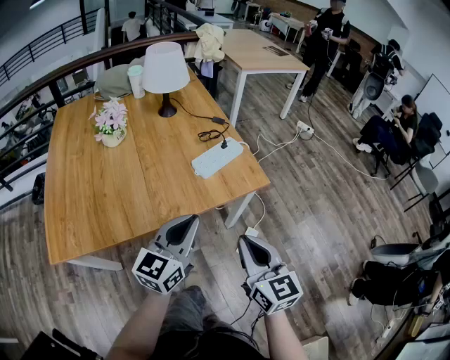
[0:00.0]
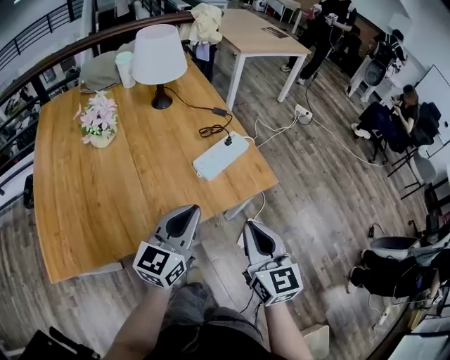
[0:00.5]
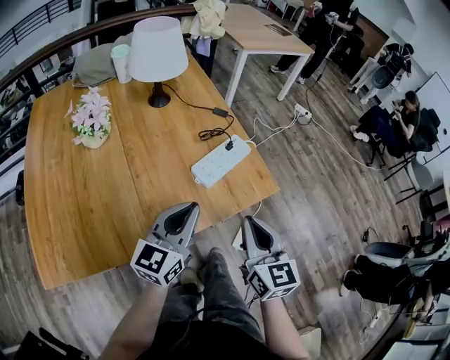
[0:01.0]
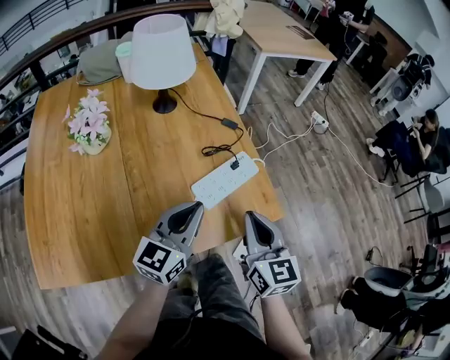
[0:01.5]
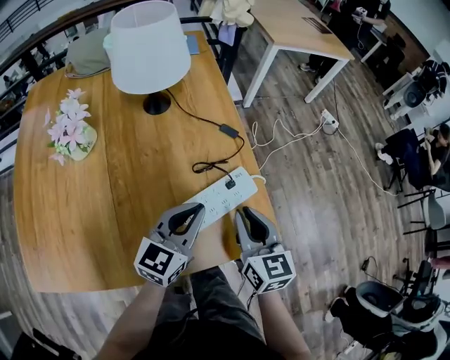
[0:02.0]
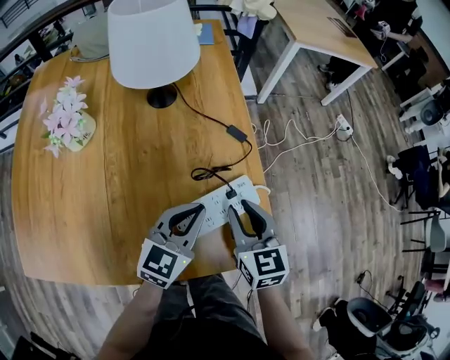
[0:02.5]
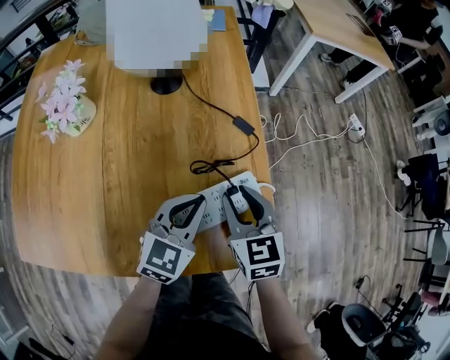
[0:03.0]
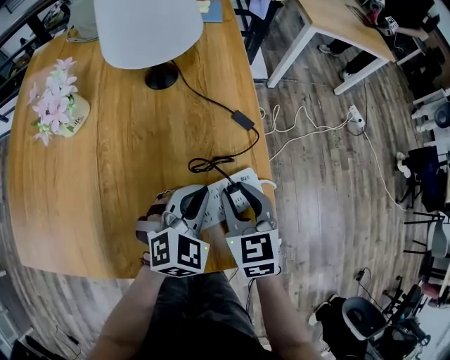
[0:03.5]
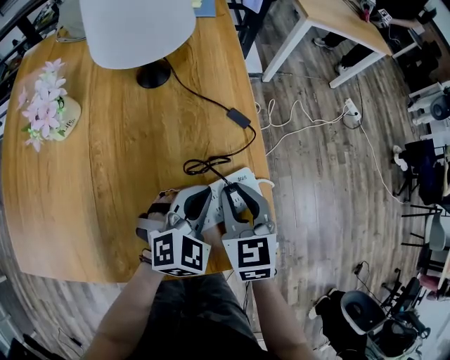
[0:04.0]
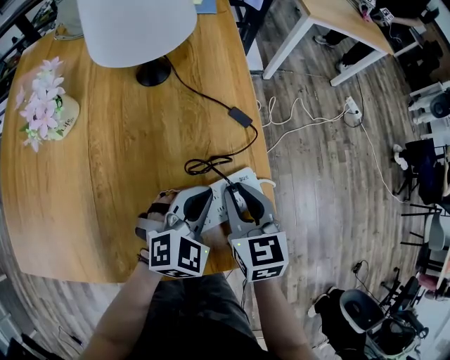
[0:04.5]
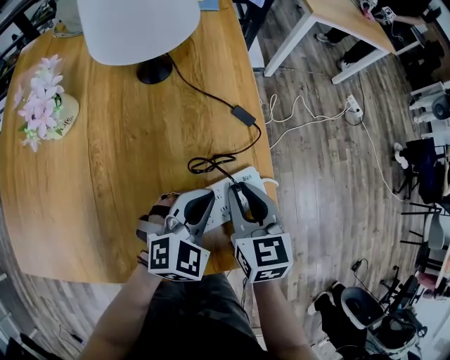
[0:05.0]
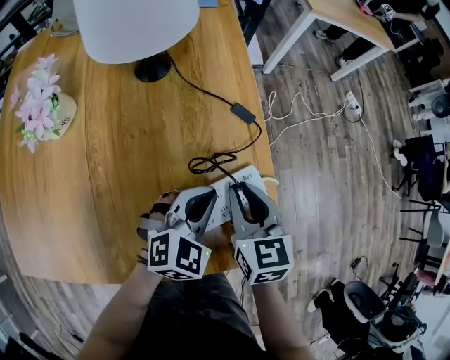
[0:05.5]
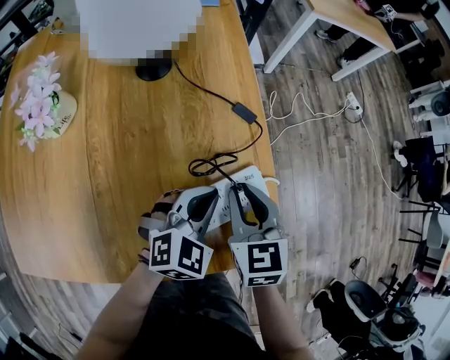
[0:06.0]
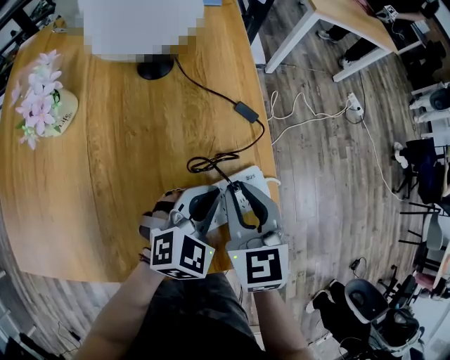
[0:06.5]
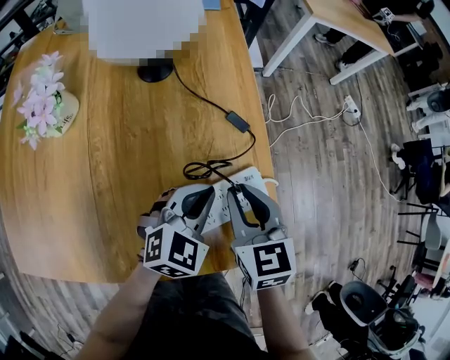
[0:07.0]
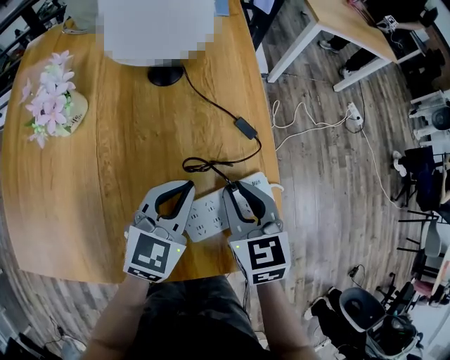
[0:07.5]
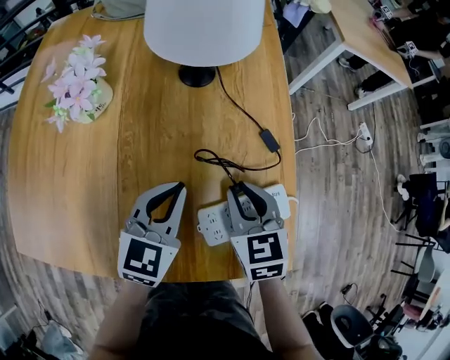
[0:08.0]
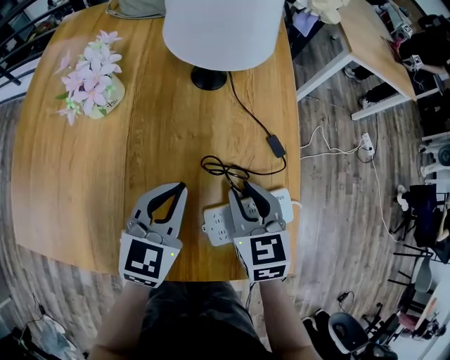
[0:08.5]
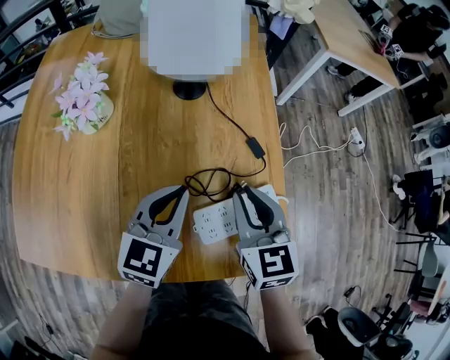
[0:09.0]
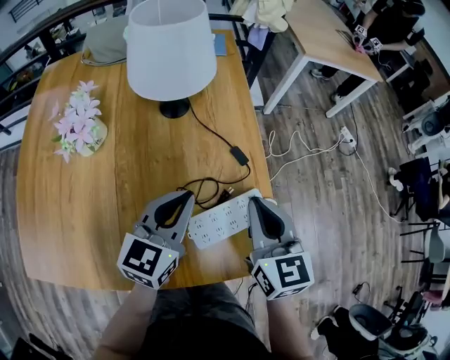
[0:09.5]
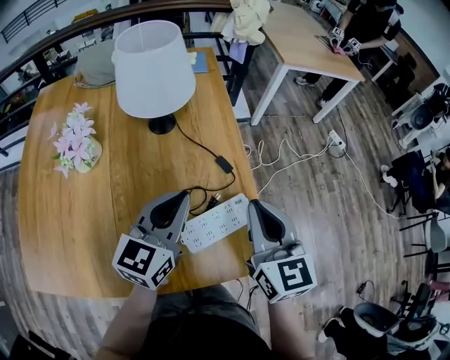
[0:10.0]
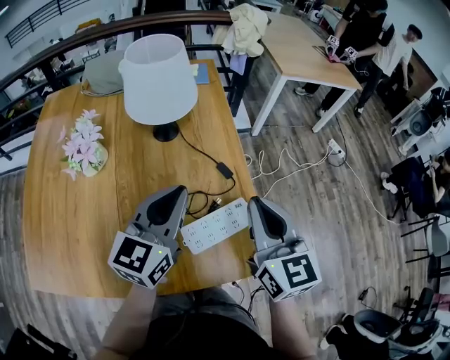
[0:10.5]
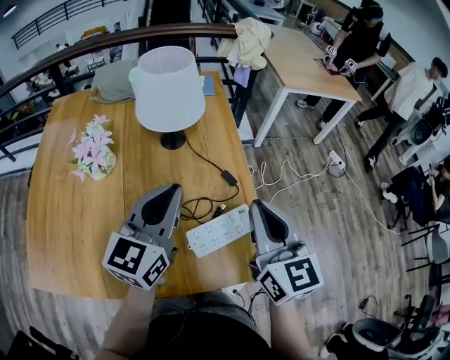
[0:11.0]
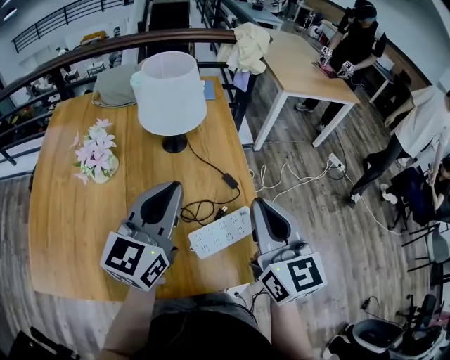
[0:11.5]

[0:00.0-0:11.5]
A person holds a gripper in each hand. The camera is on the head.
0:00.0 to 0:02.0: The grippers both shift forward by some 30 cm.
0:02.0 to 0:04.0: The right gripper goes roughly 10 cm forward and downward, and rotates roughly 20 degrees. The left gripper heads downward and forward, covering some 10 cm, and rotates approximately 40 degrees.
0:04.0 to 0:06.0: The grippers move only a little.
0:06.0 to 0:07.5: The left gripper travels to the left by some 10 cm, and swivels roughly 20 degrees.
0:07.5 to 0:09.5: The grippers both shift upward by some 10 cm. The left gripper goes to the left and returns, about 10 cm each way.
0:09.5 to 0:11.5: Both grippers travel together upward, some 15 cm.

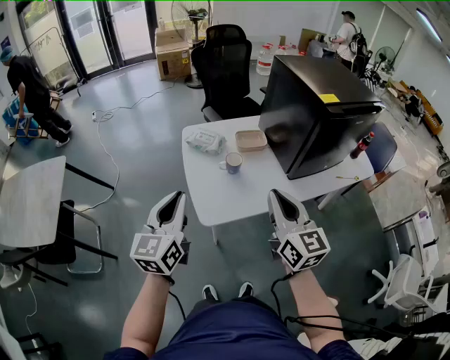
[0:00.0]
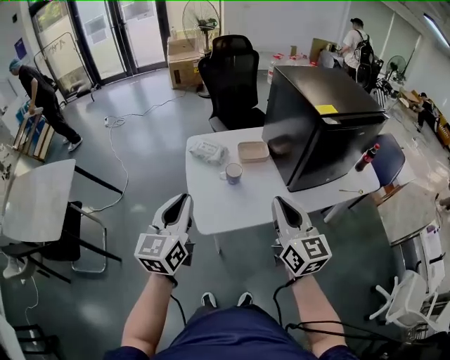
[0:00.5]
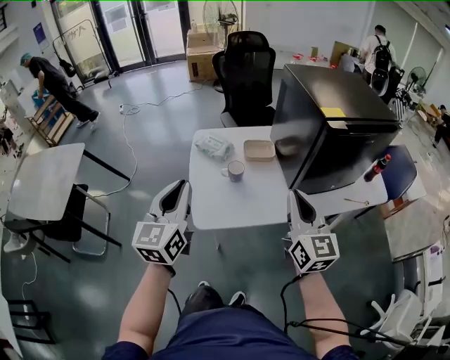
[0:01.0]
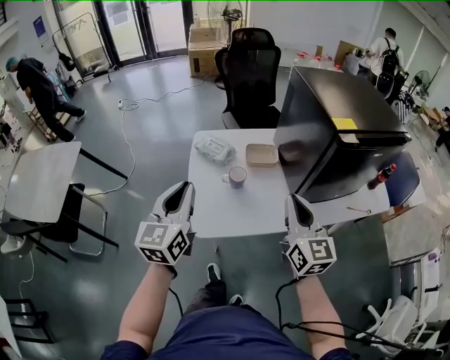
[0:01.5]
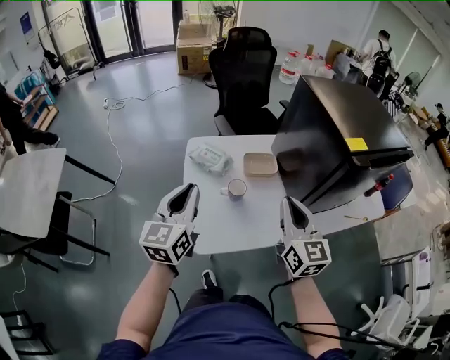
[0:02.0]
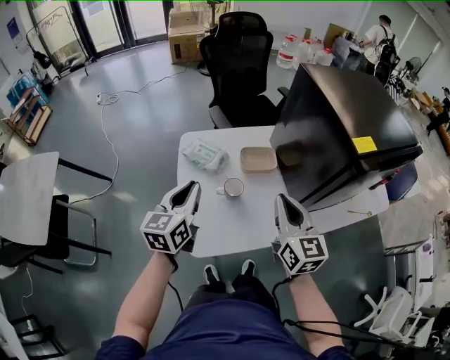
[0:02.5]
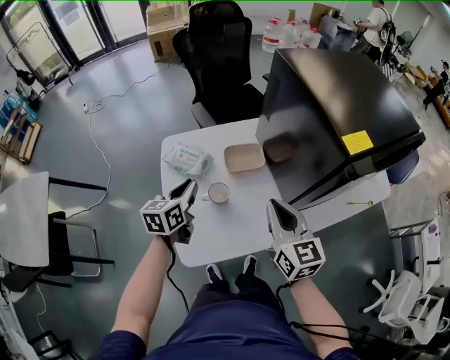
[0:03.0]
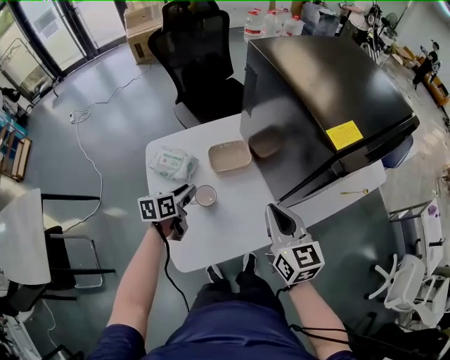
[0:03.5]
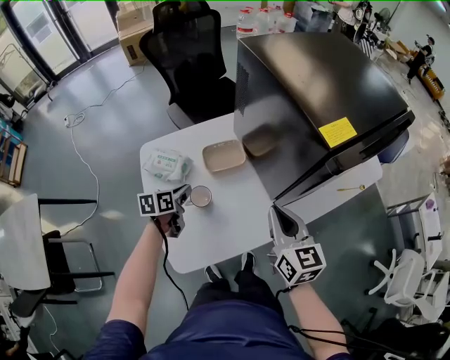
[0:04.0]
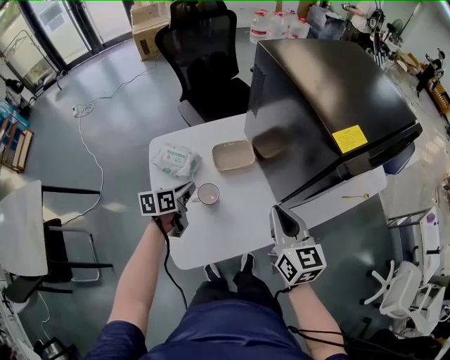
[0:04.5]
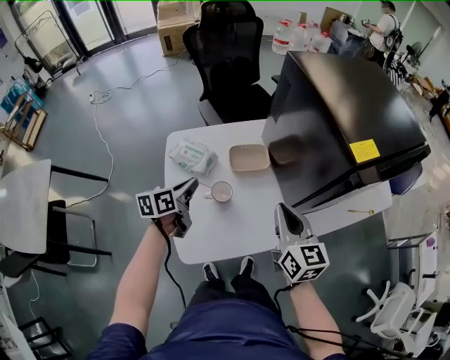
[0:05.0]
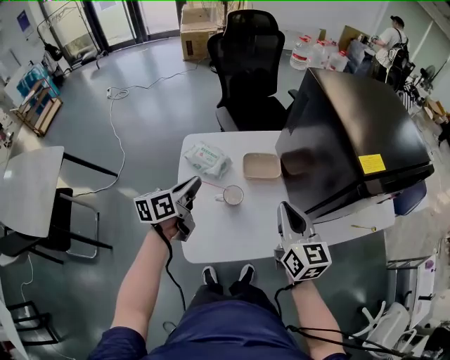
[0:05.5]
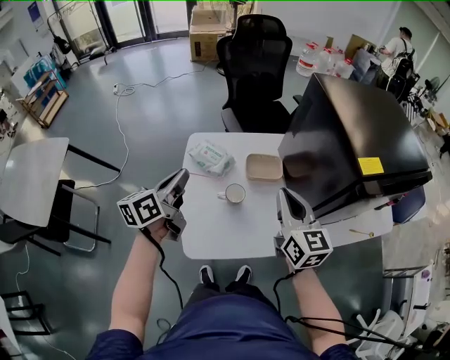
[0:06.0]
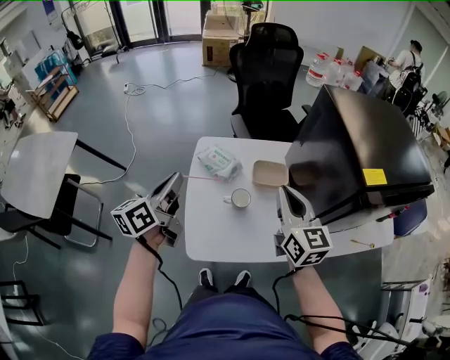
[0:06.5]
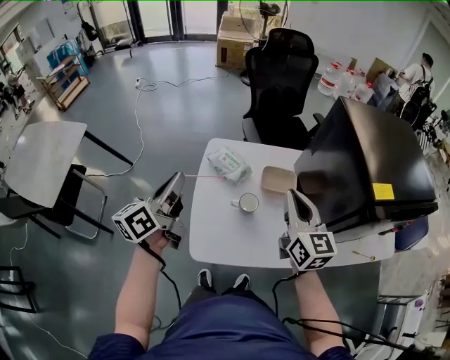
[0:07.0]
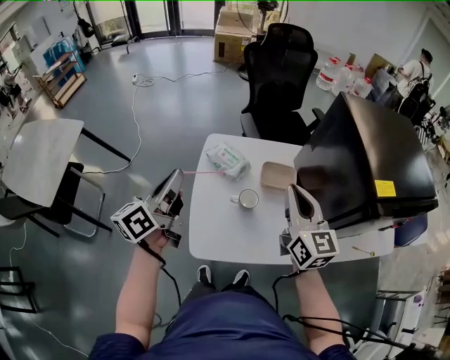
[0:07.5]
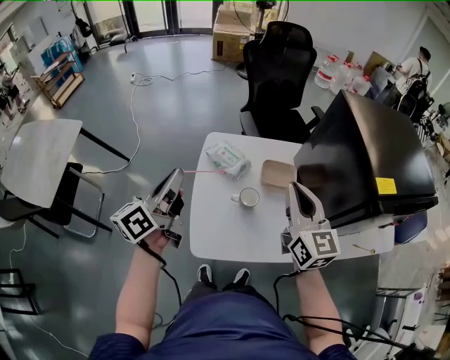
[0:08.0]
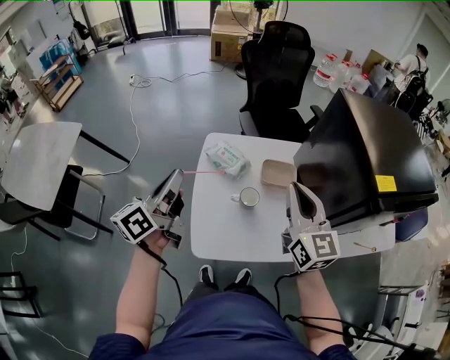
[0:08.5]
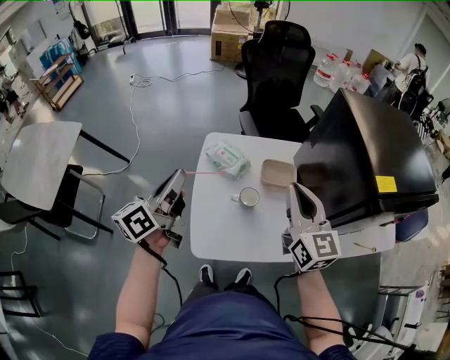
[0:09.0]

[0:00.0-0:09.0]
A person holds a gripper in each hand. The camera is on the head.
0:00.0 to 0:02.0: The right gripper travels forward and to the right by some 15 cm. The left gripper goes about 15 cm forward.
0:02.0 to 0:04.5: The right gripper travels downward, to the right and forward by about 15 cm, while the left gripper shifts roughly 30 cm downward and forward, and swivels about 50 degrees.
0:04.5 to 0:07.0: The left gripper moves upward, about 25 cm, and tilts its fingers about 30 degrees upward; the right gripper shifts by some 15 cm, and swivels approximately 20 degrees.
0:07.0 to 0:09.0: The grippers make only small movements.

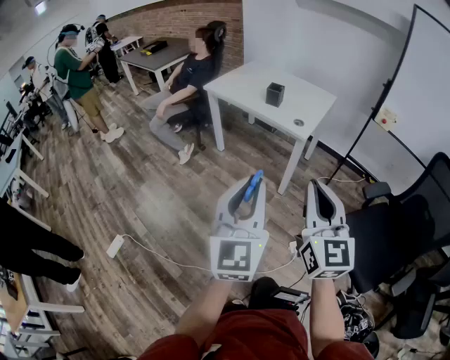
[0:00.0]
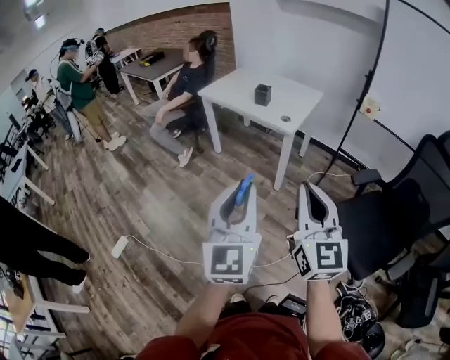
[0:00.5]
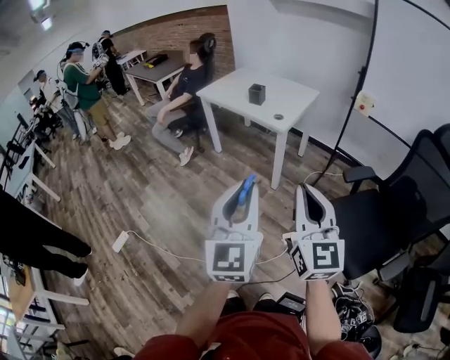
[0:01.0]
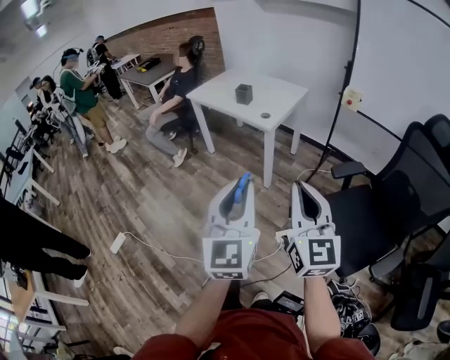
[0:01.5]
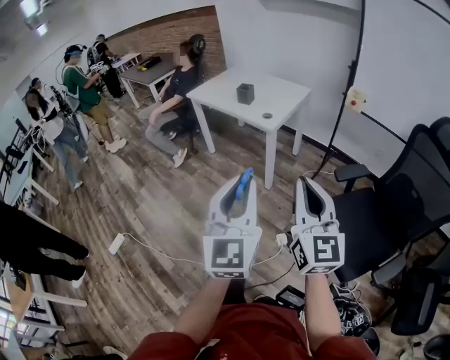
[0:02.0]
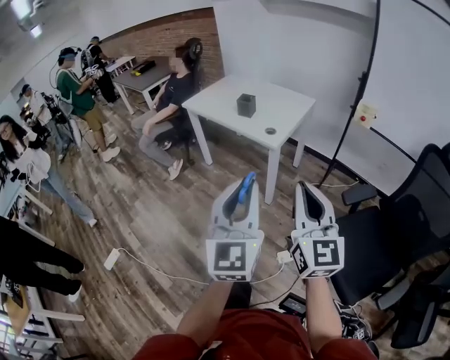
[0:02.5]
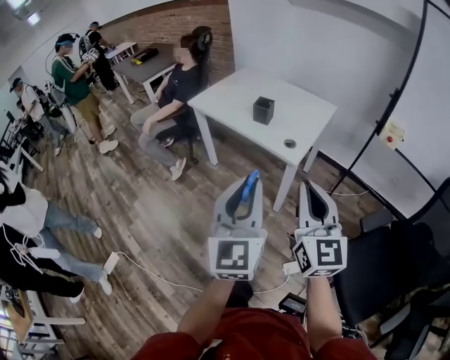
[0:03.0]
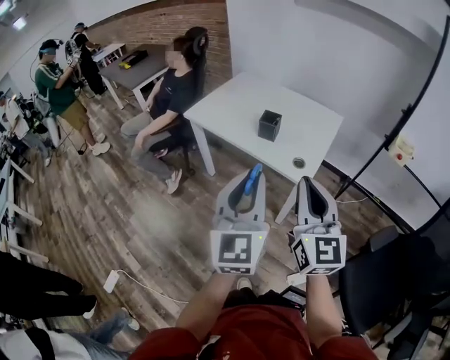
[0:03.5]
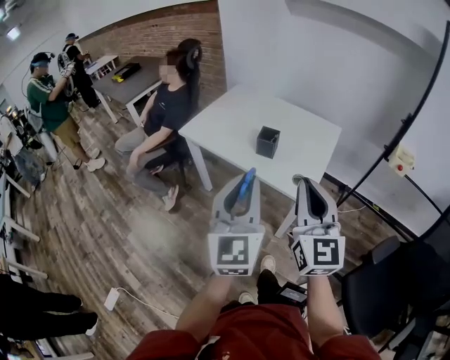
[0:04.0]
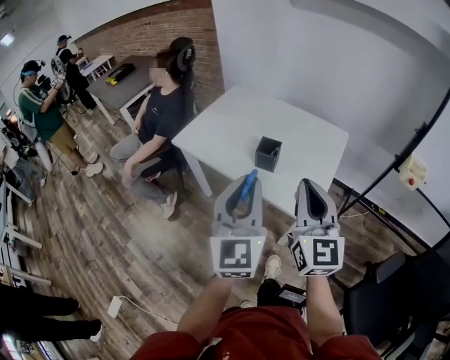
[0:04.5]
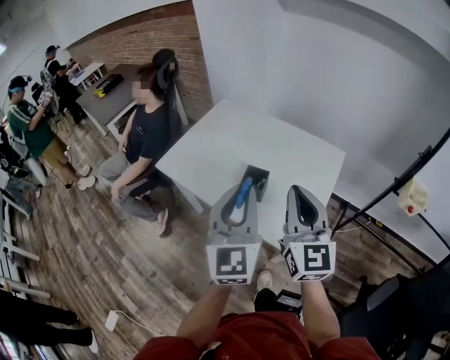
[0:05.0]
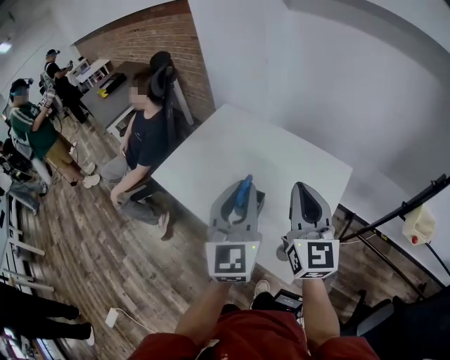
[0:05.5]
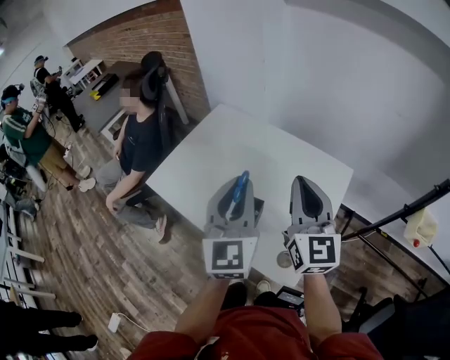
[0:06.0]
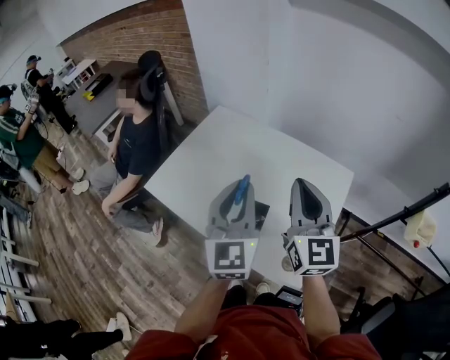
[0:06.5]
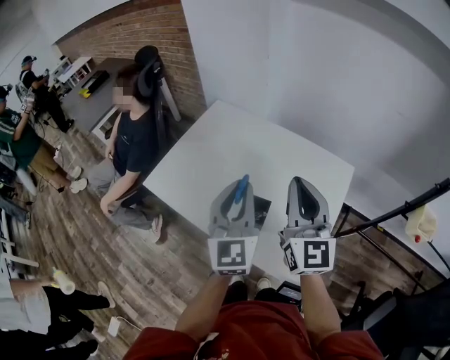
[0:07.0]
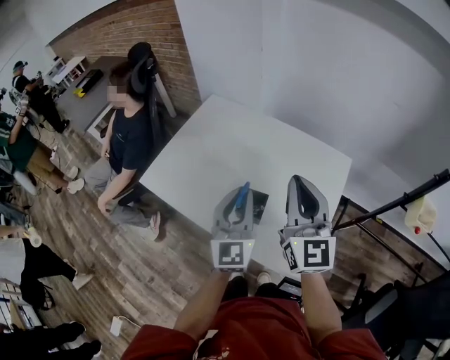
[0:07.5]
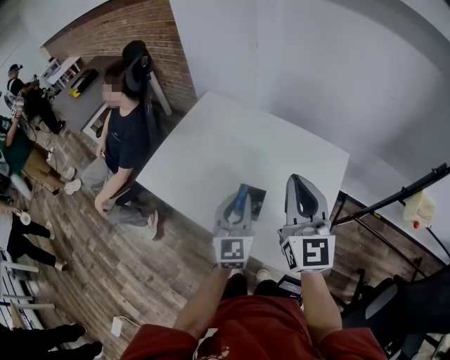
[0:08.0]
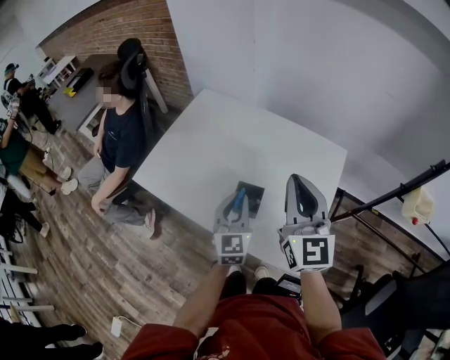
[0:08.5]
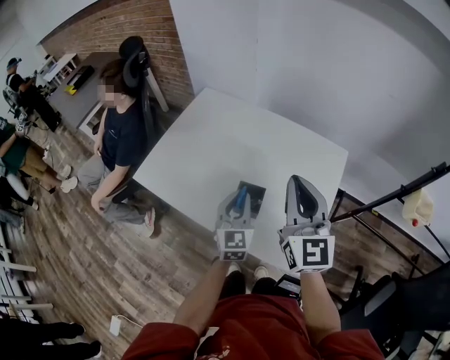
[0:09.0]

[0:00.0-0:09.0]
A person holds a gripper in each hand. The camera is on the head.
0:00.0 to 0:02.0: The grippers both shift to the right and backward by some 25 cm.
0:02.0 to 0:04.5: The pair of grippers is taken forward, roughly 70 cm.
0:04.5 to 0:07.0: The two grippers go some 30 cm forward.
0:07.0 to 0:09.0: The left gripper moves downward, about 15 cm.
